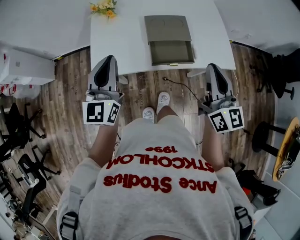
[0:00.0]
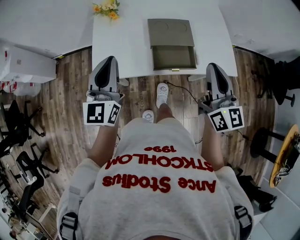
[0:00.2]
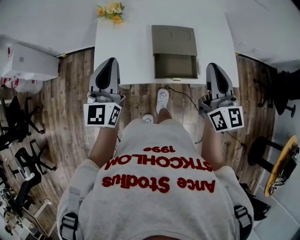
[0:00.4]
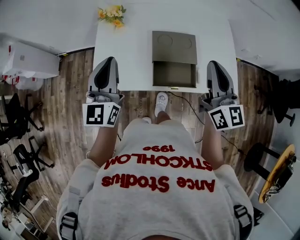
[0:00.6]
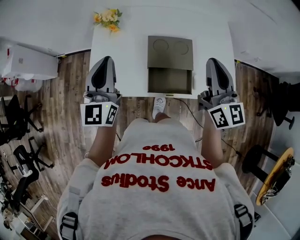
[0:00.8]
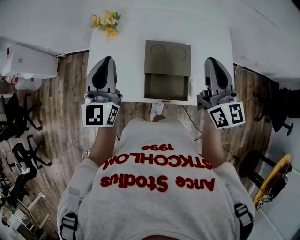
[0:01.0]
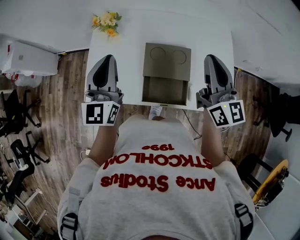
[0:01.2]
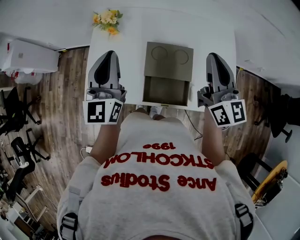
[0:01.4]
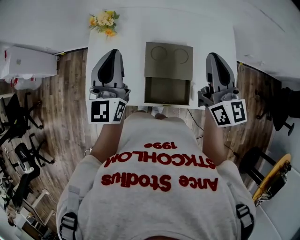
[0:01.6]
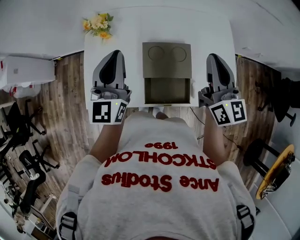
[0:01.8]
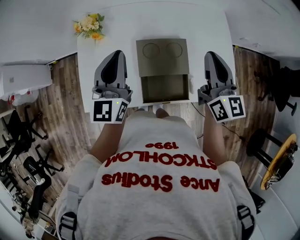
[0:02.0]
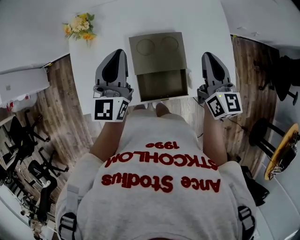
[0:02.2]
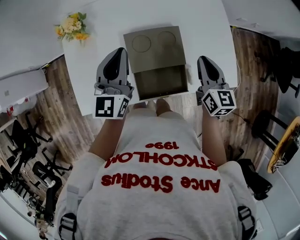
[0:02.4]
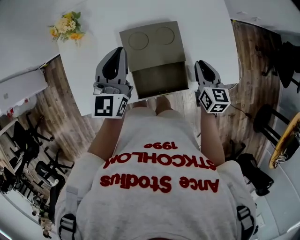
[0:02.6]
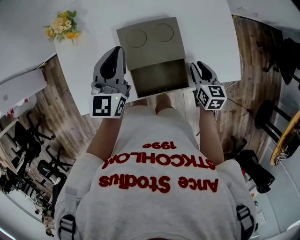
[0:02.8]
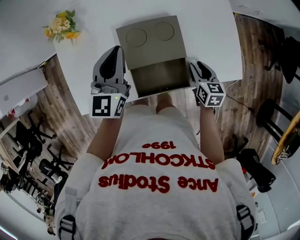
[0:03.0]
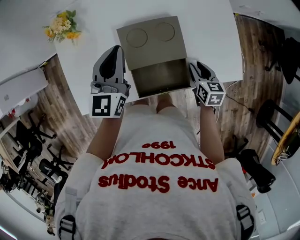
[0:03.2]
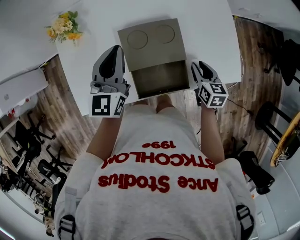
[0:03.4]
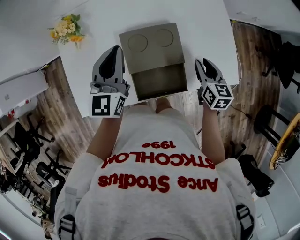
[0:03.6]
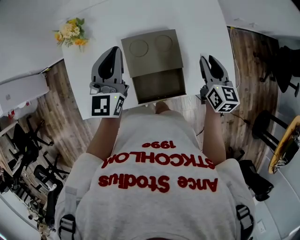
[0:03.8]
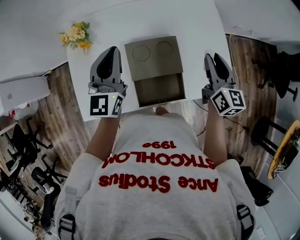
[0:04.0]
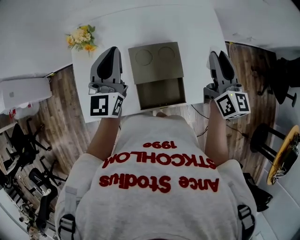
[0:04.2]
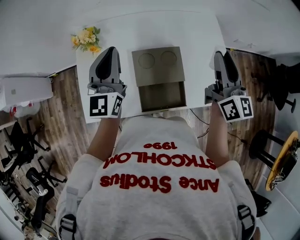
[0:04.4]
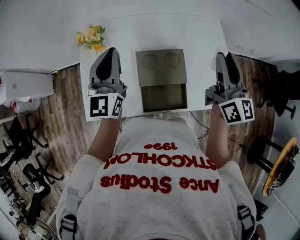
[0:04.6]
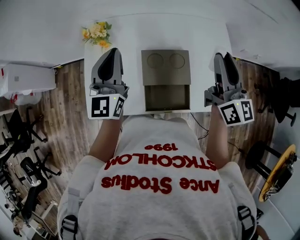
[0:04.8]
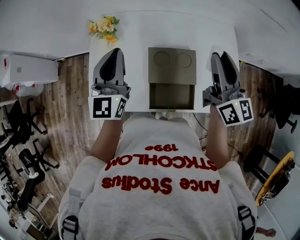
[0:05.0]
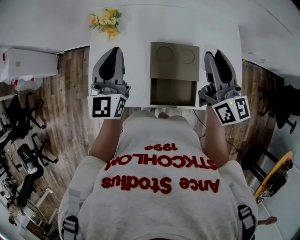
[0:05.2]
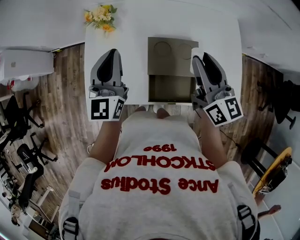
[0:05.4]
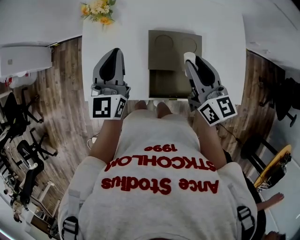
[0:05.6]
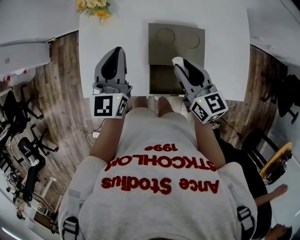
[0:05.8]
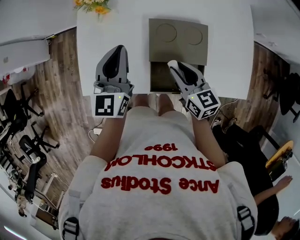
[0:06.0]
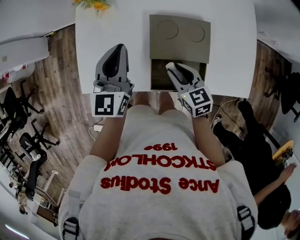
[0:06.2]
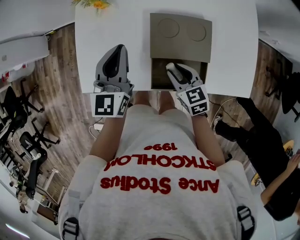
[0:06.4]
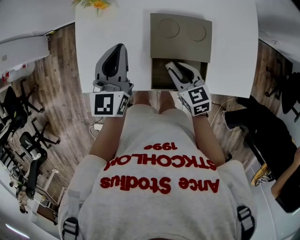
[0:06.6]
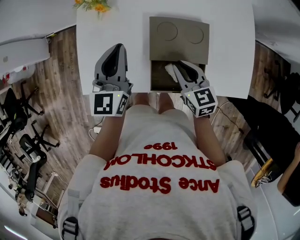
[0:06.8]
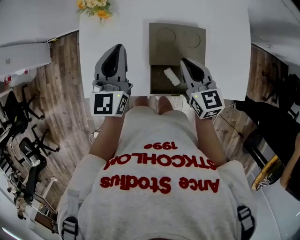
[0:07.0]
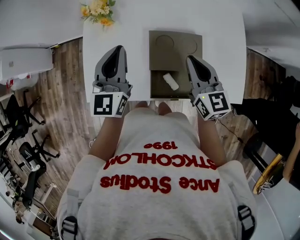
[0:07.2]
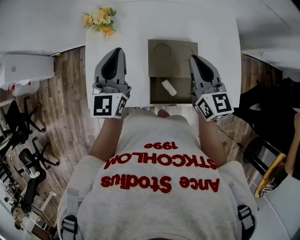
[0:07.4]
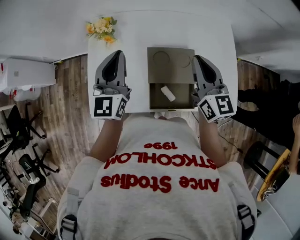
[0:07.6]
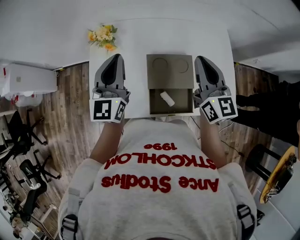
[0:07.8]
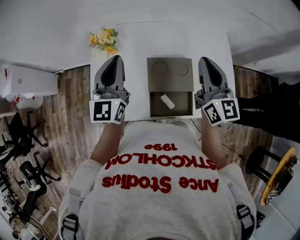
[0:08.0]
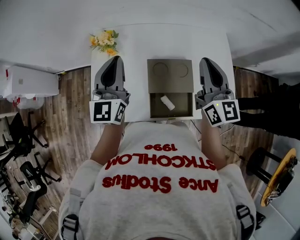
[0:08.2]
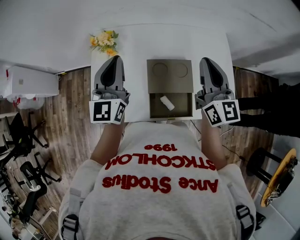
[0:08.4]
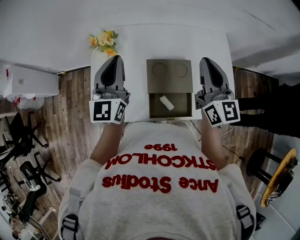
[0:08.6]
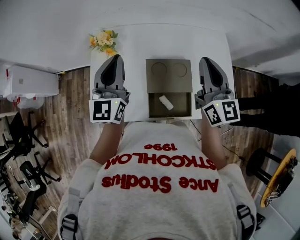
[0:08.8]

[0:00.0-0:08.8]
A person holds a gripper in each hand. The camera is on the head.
0:00.0 to 0:01.4: The left gripper heads forward, covering about 15 cm. Meanwhile the right gripper is displaced forward by roughly 20 cm.
0:01.4 to 0:03.0: The left gripper heads downward and to the right, covering about 15 cm, and changes its angle by approximately 30 degrees. Meanwhile the right gripper heads downward, covering roughly 30 cm, angles its fingers downward, by some 50 degrees, and opens its fingers.
0:03.0 to 0:04.4: The left gripper is displaced upward and to the left by some 10 cm. The right gripper moves upward, approximately 30 cm, and tilts its fingers about 50 degrees upward.
0:04.4 to 0:05.8: The left gripper shifts about 10 cm downward and backward. The right gripper heads to the left and downward, covering about 25 cm, and turns by roughly 40 degrees.
0:05.8 to 0:07.4: The right gripper heads upward, covering roughly 5 cm, and closes, while the left gripper moves about 5 cm.
0:07.4 to 0:08.8: The right gripper goes about 10 cm upward, while the left gripper goes approximately 5 cm upward.

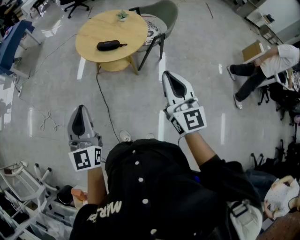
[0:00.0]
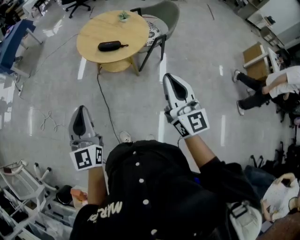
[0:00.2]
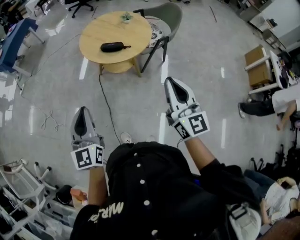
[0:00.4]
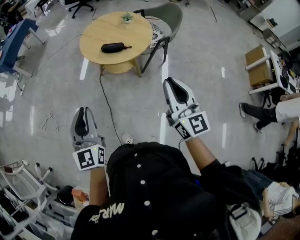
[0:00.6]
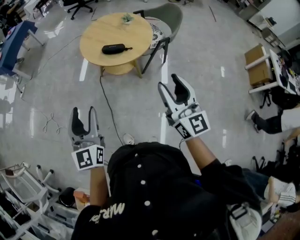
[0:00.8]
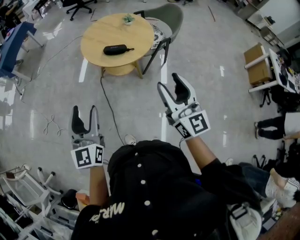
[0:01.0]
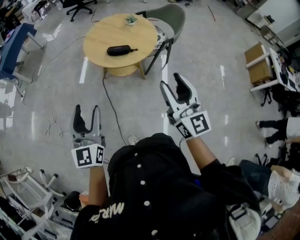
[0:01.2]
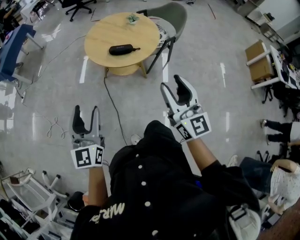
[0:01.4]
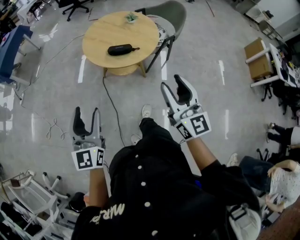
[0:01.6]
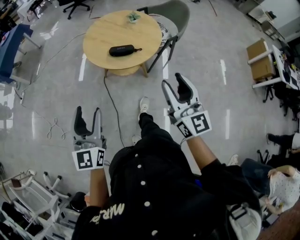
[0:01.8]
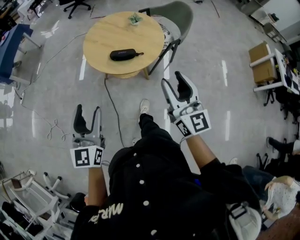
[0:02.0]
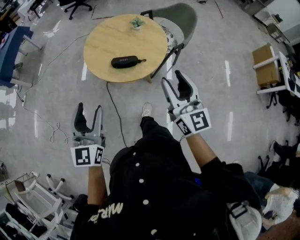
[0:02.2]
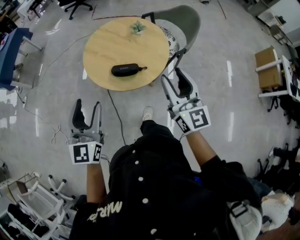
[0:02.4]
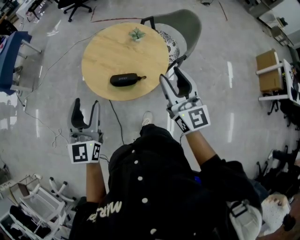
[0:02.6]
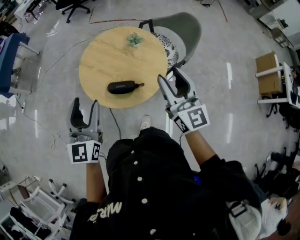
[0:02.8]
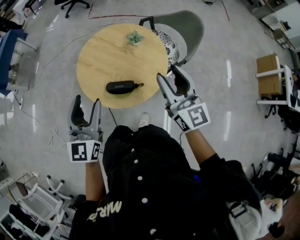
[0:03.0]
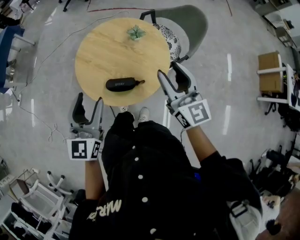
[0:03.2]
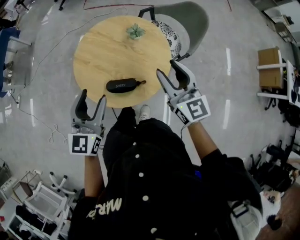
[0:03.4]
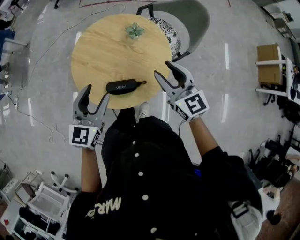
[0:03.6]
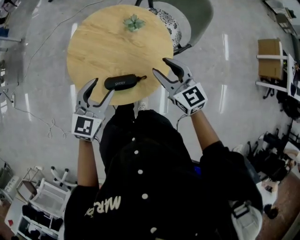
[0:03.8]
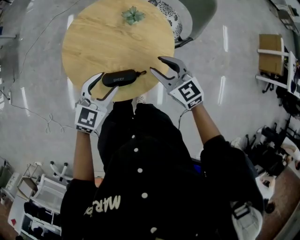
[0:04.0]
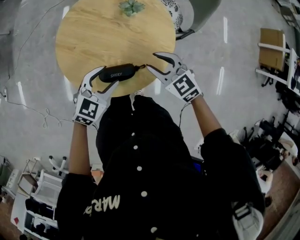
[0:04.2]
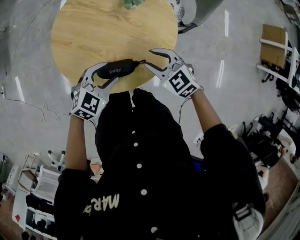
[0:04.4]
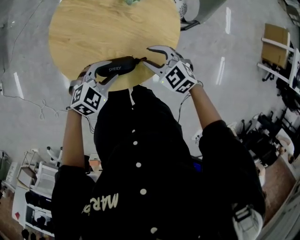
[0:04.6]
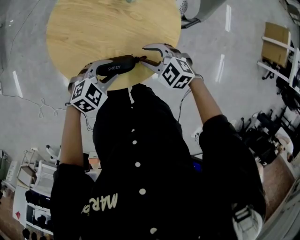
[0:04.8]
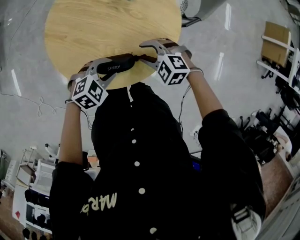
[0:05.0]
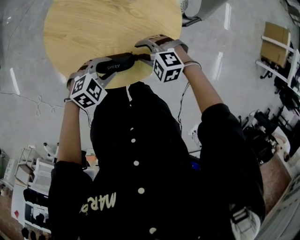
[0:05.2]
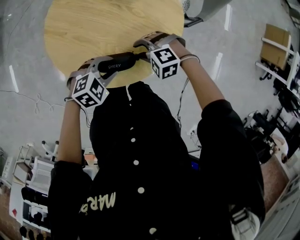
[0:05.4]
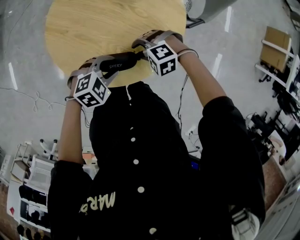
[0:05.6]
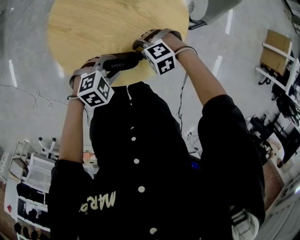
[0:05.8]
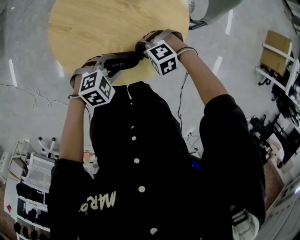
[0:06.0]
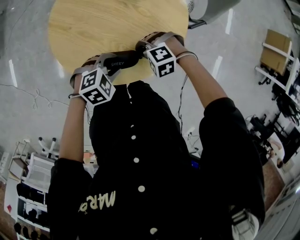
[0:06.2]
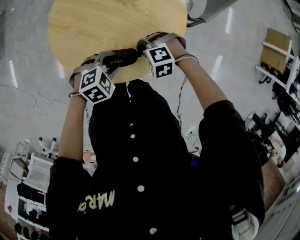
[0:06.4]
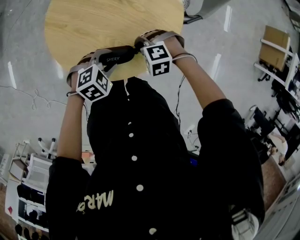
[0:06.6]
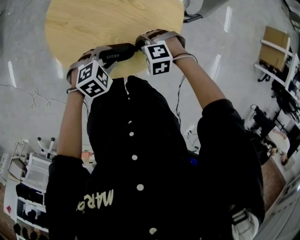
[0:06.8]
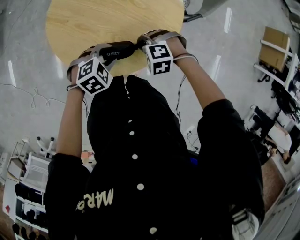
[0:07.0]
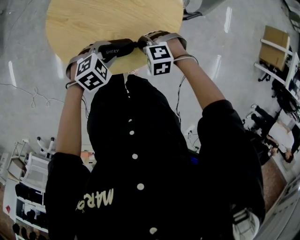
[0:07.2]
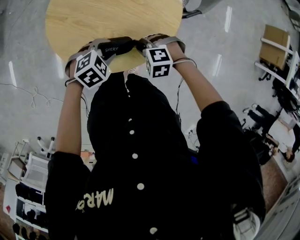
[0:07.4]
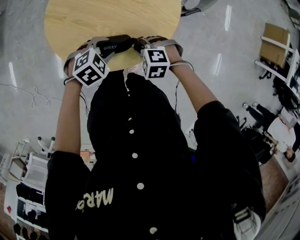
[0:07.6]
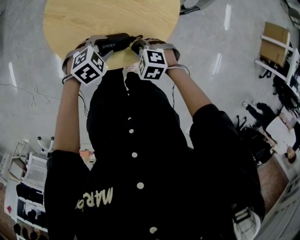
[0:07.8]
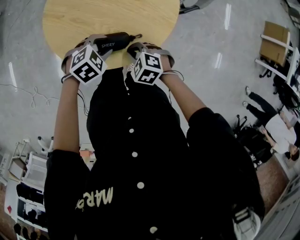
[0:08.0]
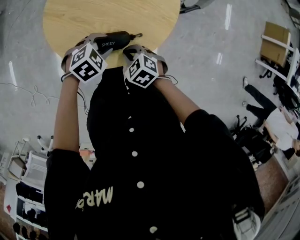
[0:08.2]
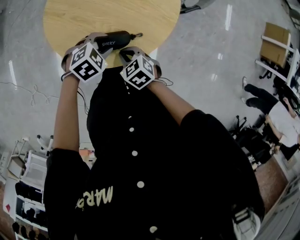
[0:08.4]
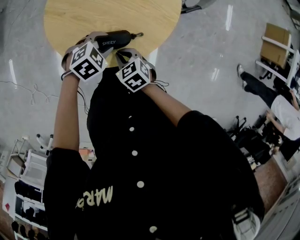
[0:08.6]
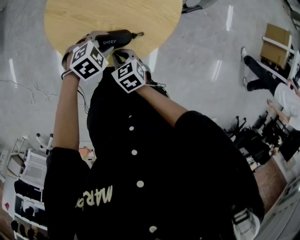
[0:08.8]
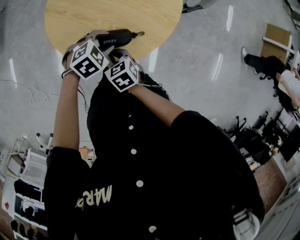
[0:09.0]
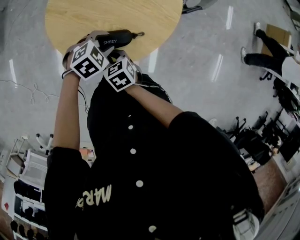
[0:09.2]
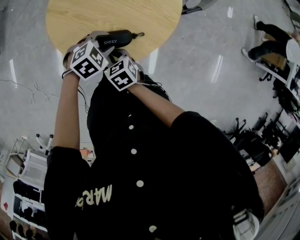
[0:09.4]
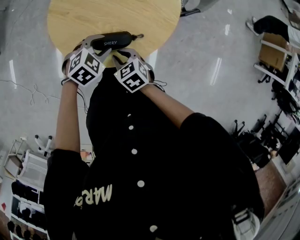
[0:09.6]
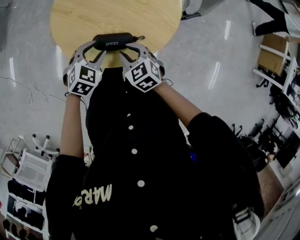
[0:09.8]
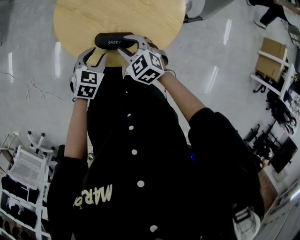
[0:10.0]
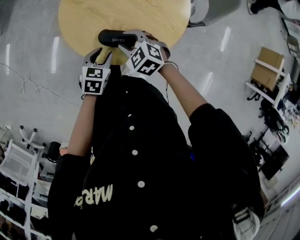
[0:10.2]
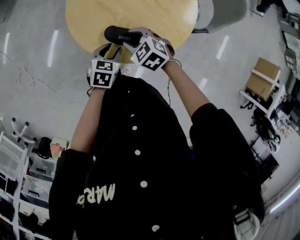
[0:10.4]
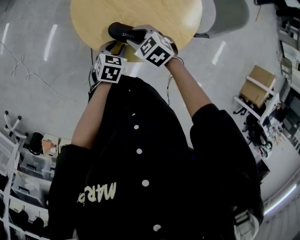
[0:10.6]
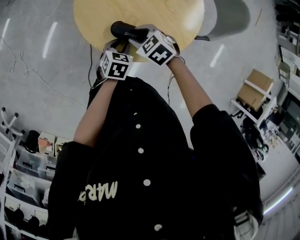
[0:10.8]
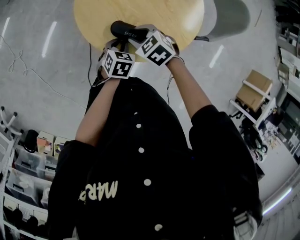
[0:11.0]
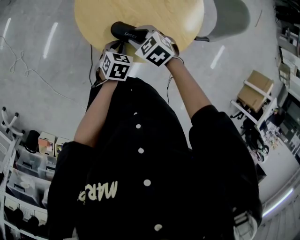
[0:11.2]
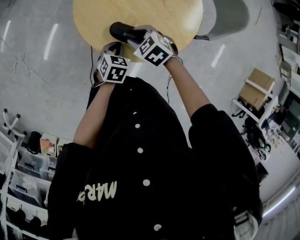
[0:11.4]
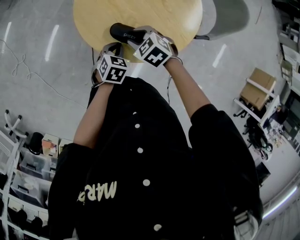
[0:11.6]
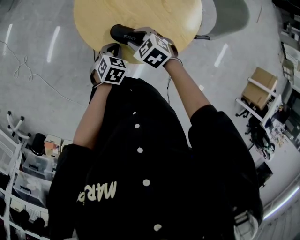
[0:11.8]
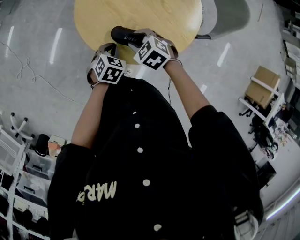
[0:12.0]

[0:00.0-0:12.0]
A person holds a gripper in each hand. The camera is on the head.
0:00.0 to 0:01.6: The left gripper heads forward and to the left, covering about 15 cm, and opens up. Meanwhile the right gripper heads to the left and forward, covering approximately 10 cm, and opens up.
0:01.6 to 0:03.0: The pair of grippers is taken forward, roughly 40 cm.
0:03.0 to 0:04.4: The left gripper shifts some 30 cm downward and forward, and angles its fingers downward, by some 40 degrees. The right gripper moves downward, roughly 30 cm, and tips its fingers downward by about 40 degrees.
0:04.4 to 0:06.0: The left gripper is displaced downward by some 5 cm, and swivels roughly 20 degrees; the right gripper shifts about 15 cm downward, swivels roughly 60 degrees, and closes up.
0:06.0 to 0:07.6: The right gripper ends up approximately 5 cm from where it was, and swivels some 30 degrees.
0:07.6 to 0:09.0: The right gripper ends up some 10 cm from where it was, and rotates around the line of its fingers by roughly 60 degrees, clockwise from behind.
0:09.0 to 0:10.4: The right gripper changes place by roughly 5 cm, rotates around the line of its fingers by some 40 degrees, counterclockwise from behind, and opens its fingers; the left gripper shifts by about 5 cm, and twists some 50 degrees counterclockwise, seen from behind.
0:10.4 to 0:12.0: The left gripper closes.

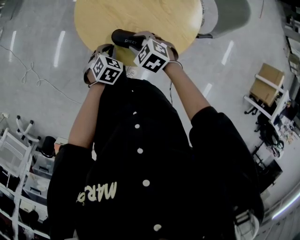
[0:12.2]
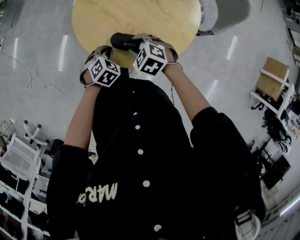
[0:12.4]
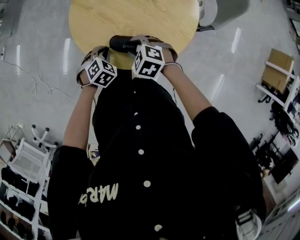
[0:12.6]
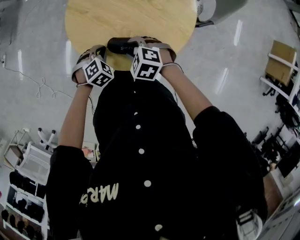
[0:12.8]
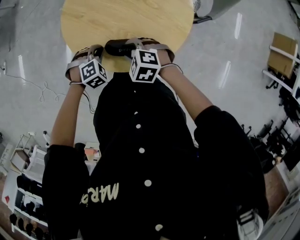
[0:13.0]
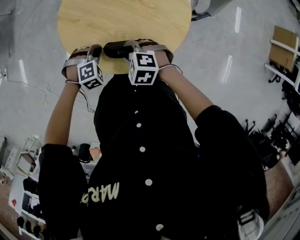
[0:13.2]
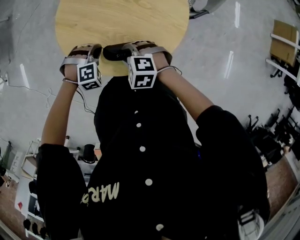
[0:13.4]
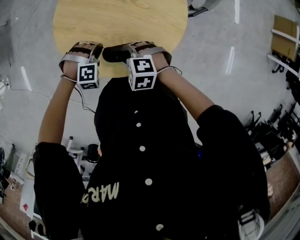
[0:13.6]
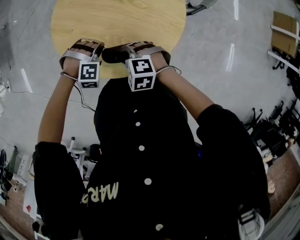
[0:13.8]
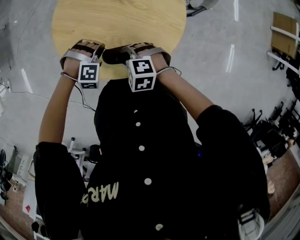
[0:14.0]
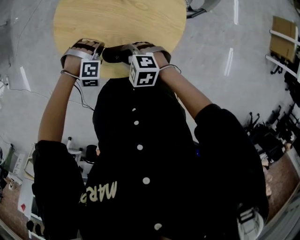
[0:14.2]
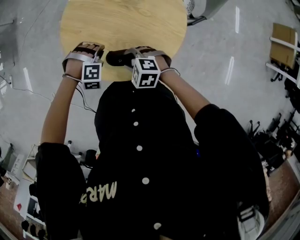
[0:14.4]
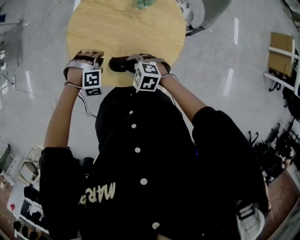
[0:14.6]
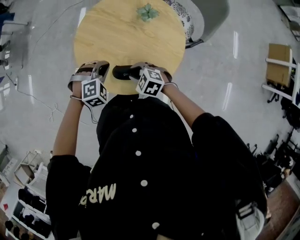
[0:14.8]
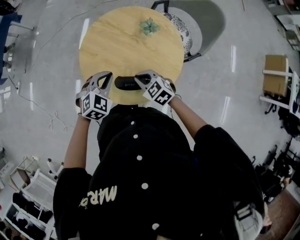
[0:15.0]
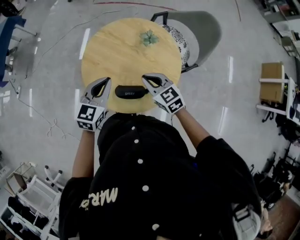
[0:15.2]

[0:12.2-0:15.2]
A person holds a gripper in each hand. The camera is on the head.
0:12.2 to 0:13.8: The left gripper goes some 10 cm forward and to the right, and rotates around the line of its fingers by about 90 degrees, clockwise from behind.
0:13.8 to 0:15.2: The left gripper moves upward, about 25 cm, and rotates around the line of its fingers by about 80 degrees, counterclockwise from behind; the right gripper heads upward, covering roughly 15 cm, tips its fingers upward by roughly 30 degrees, and closes.
